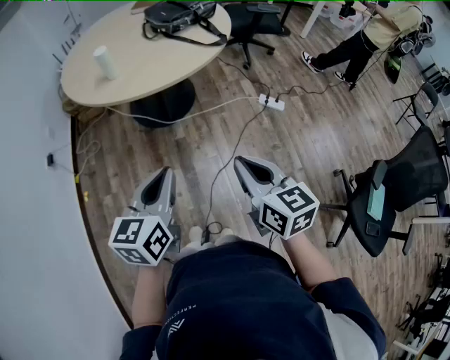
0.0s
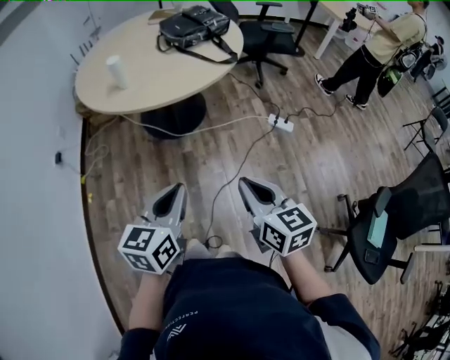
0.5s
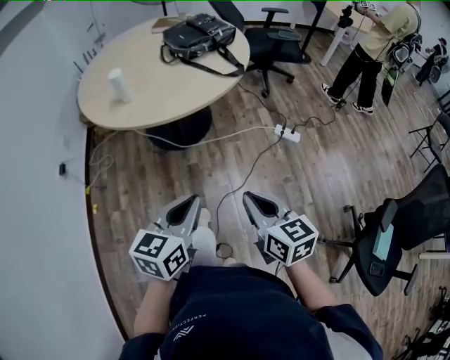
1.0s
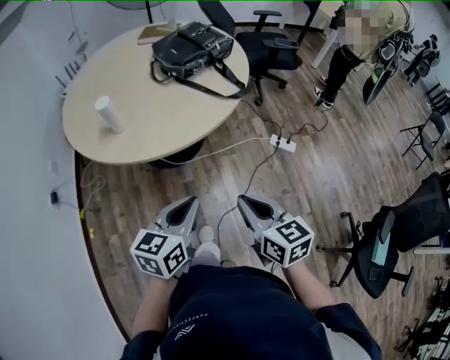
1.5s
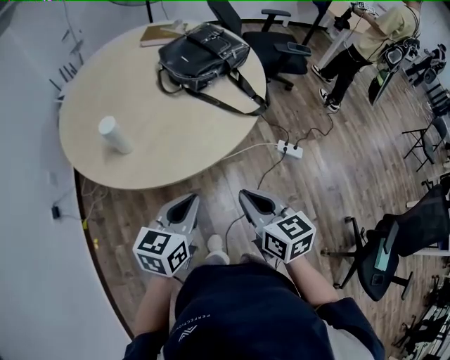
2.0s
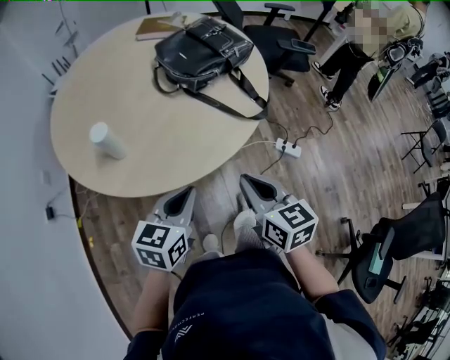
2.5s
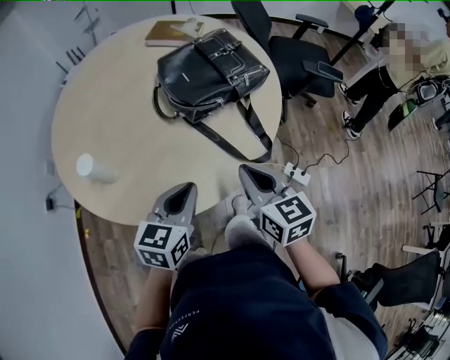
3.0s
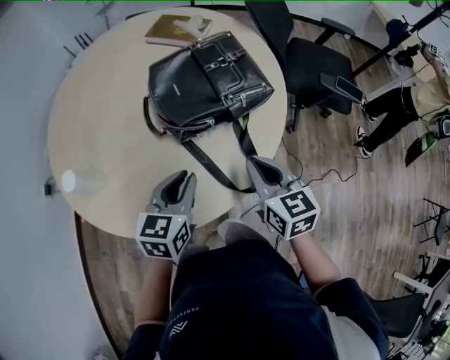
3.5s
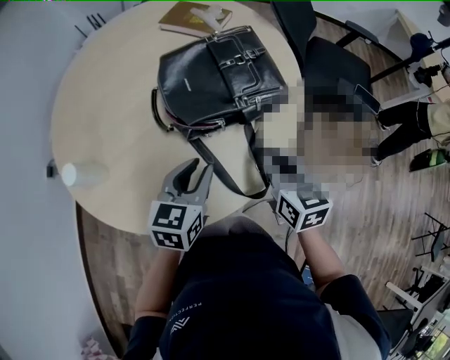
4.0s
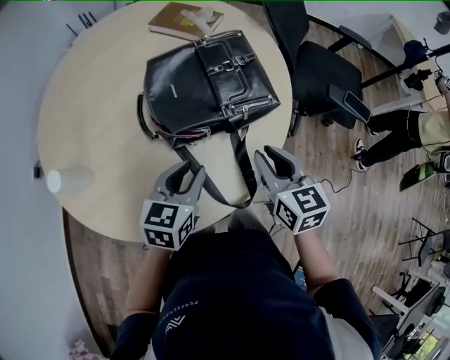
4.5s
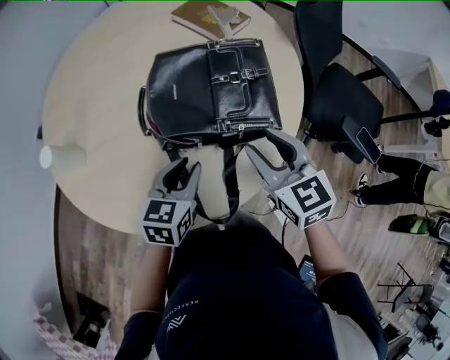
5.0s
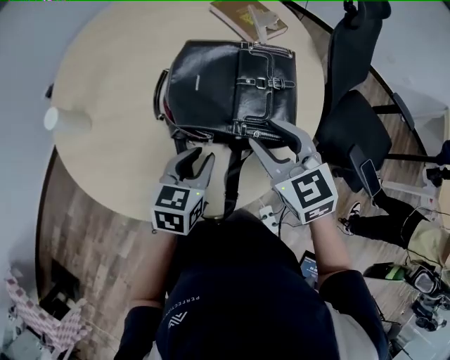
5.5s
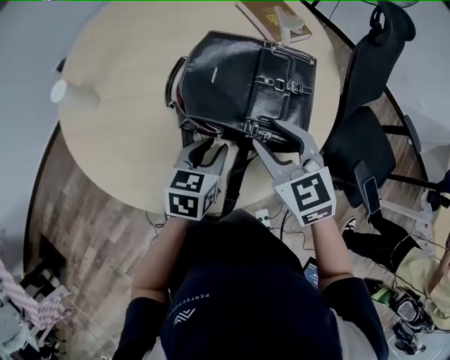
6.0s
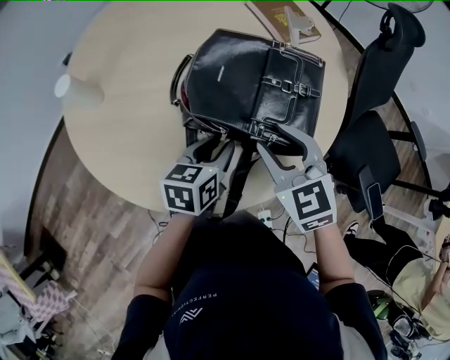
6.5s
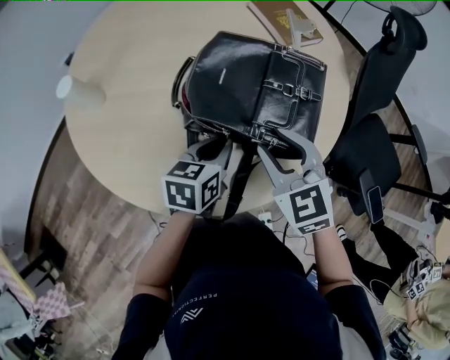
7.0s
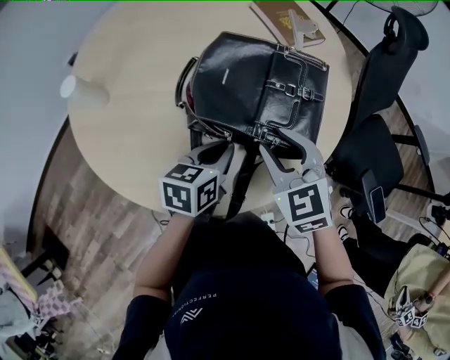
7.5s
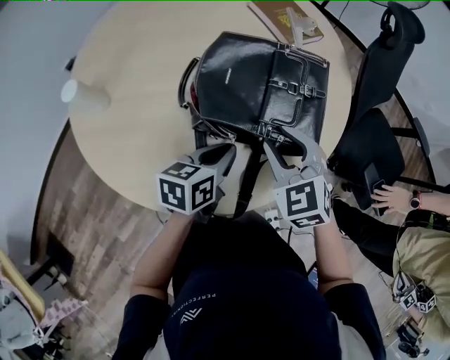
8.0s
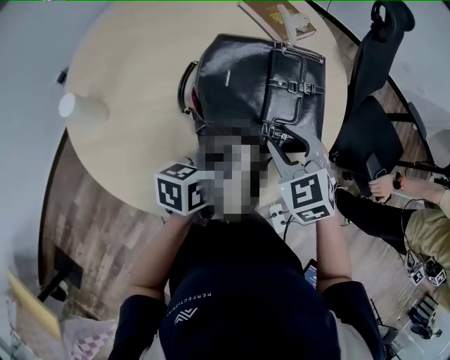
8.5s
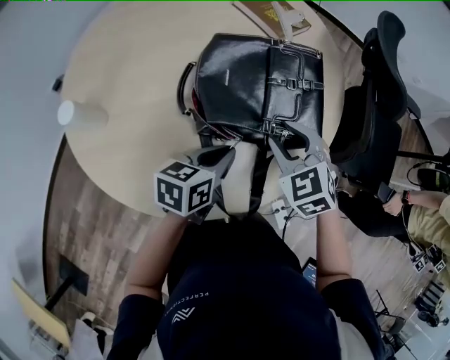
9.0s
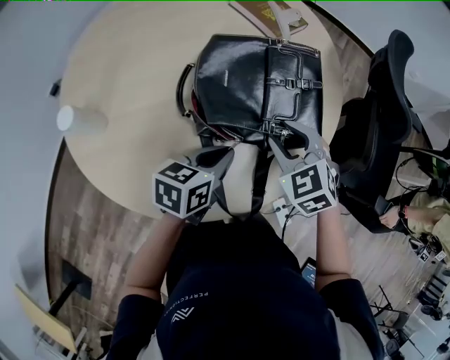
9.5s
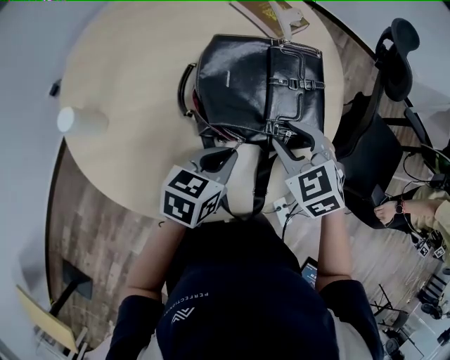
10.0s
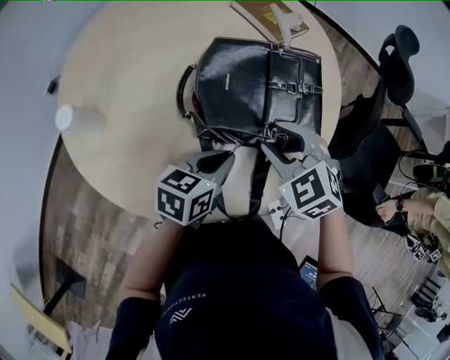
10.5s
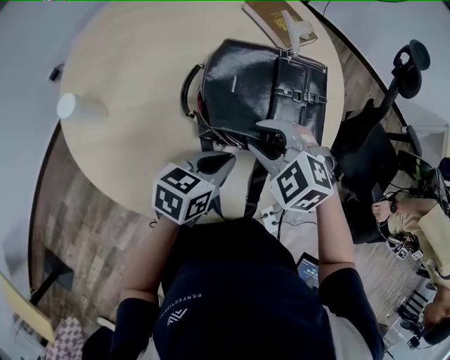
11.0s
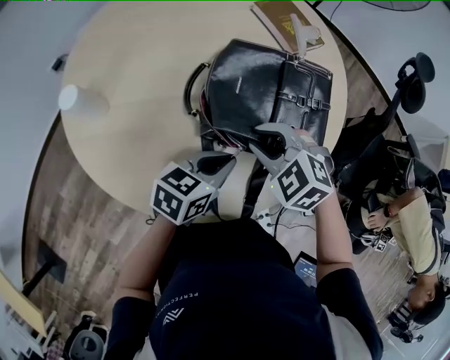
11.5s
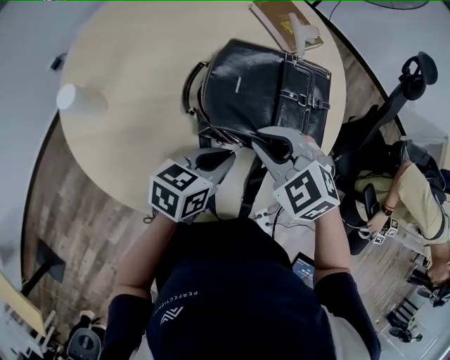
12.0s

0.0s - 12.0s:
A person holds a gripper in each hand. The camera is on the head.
0.0s - 2.0s: Both grippers move forward, roughly 30 cm.
2.0s - 4.0s: The two grippers go roughly 40 cm forward and to the right. The left gripper rotates roughly 30 degrees, and opens.
4.0s - 6.0s: The left gripper moves approximately 10 cm, and turns by roughly 30 degrees, while the right gripper changes place by roughly 10 cm, rotates some 60 degrees, and opens.
6.0s - 8.0s: The left gripper closes.
8.0s - 10.0s: The left gripper rotates approximately 20 degrees.
10.0s - 12.0s: The right gripper heads to the left, covering some 5 cm, turns by roughly 30 degrees, and closes up.

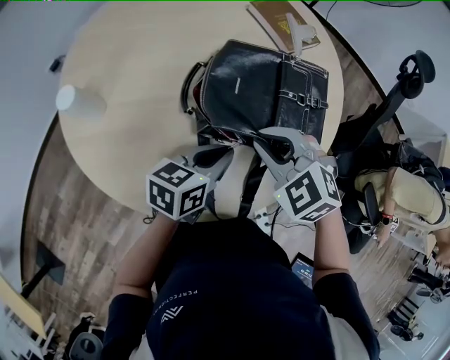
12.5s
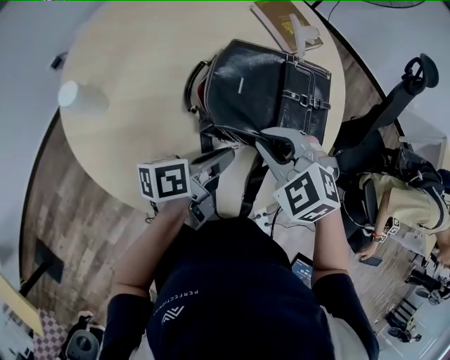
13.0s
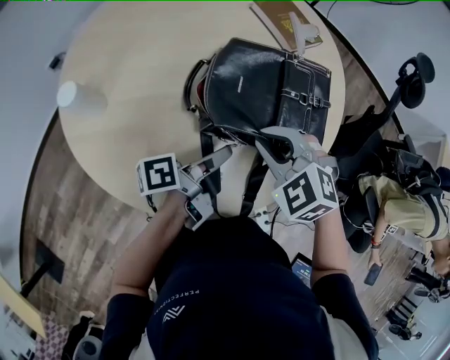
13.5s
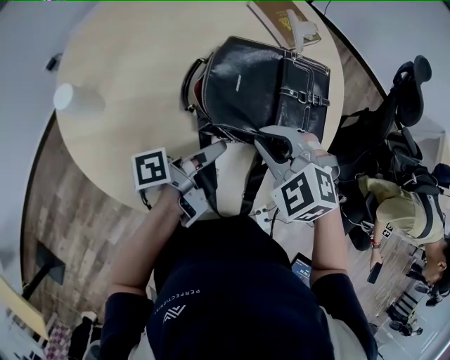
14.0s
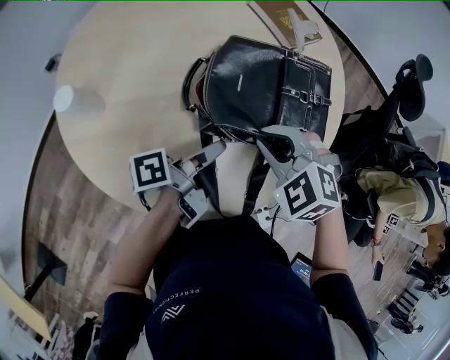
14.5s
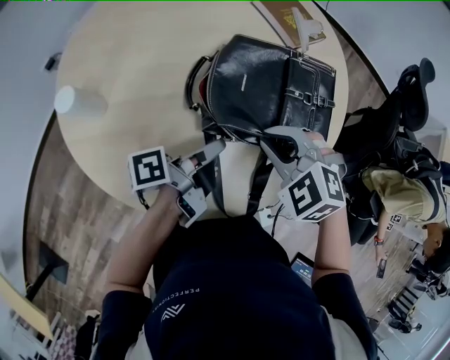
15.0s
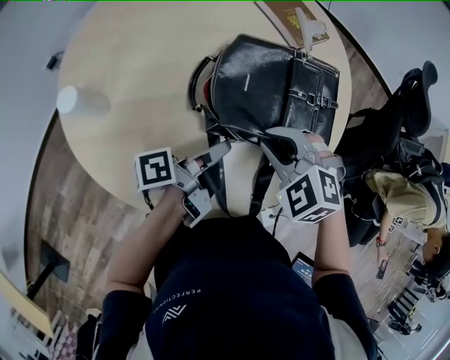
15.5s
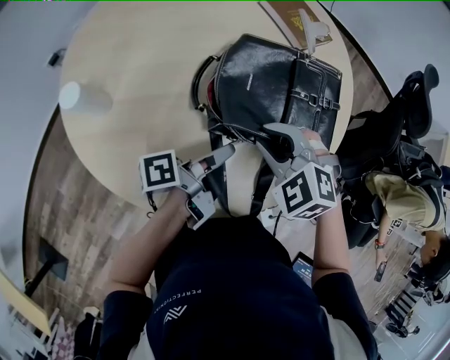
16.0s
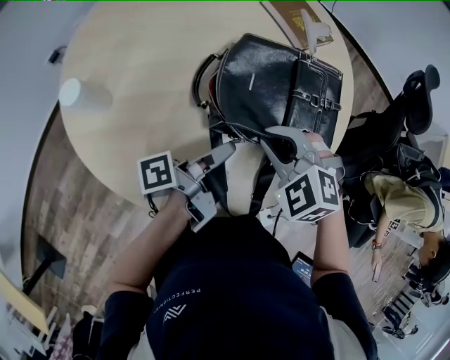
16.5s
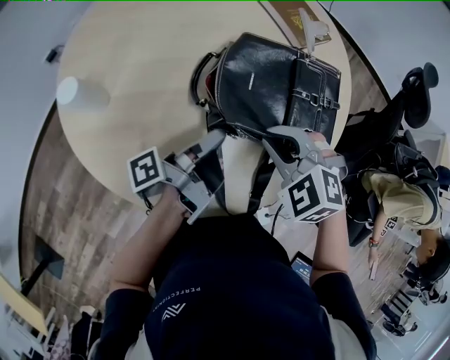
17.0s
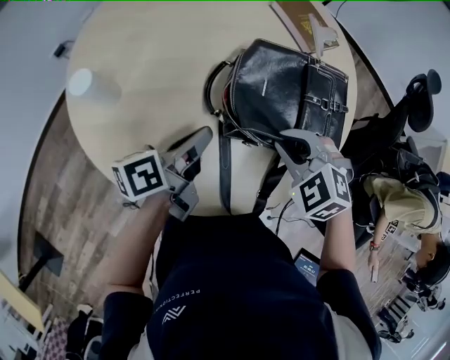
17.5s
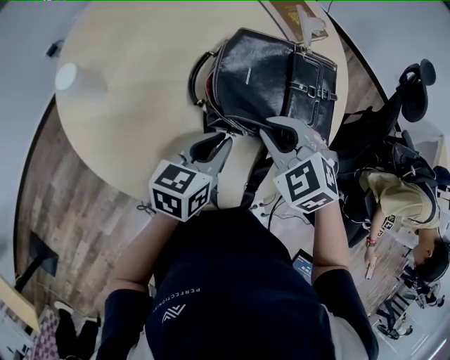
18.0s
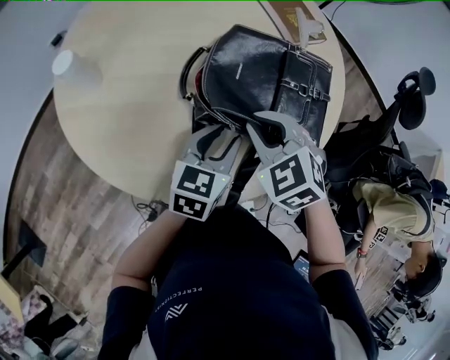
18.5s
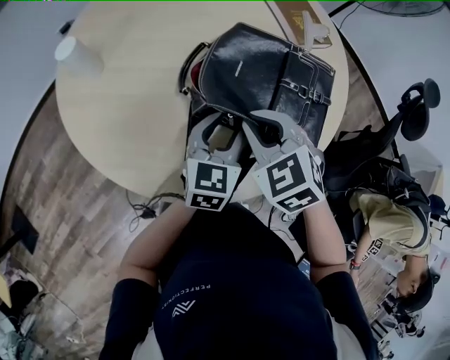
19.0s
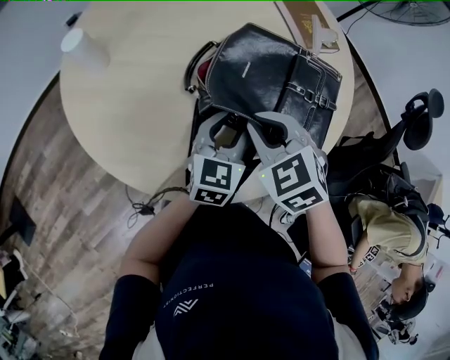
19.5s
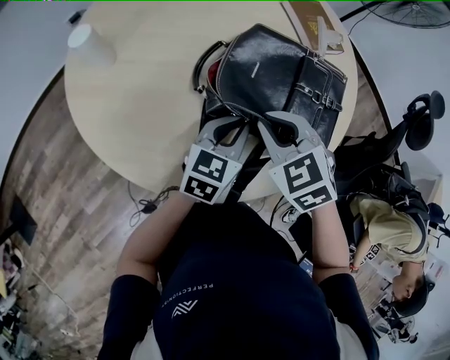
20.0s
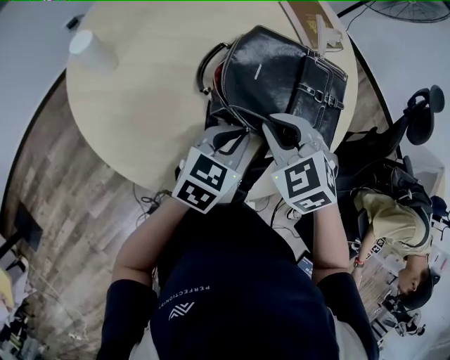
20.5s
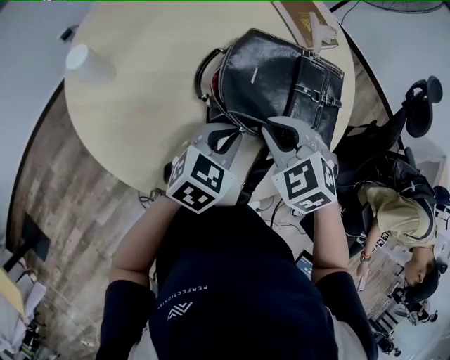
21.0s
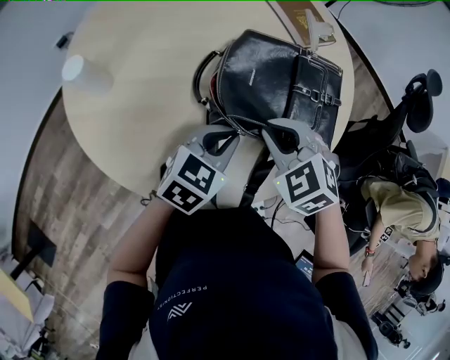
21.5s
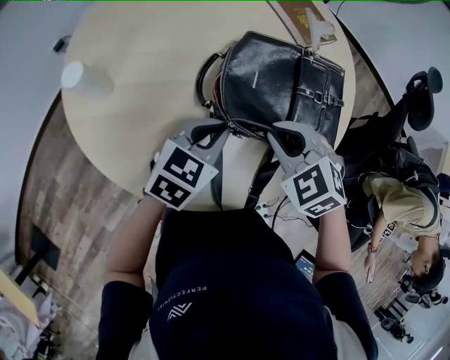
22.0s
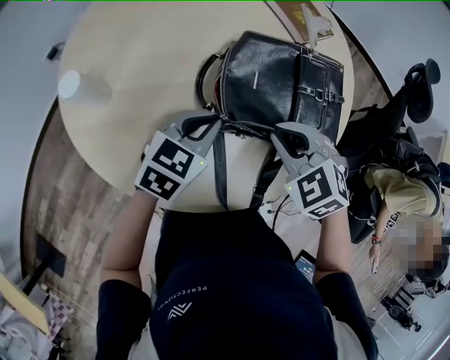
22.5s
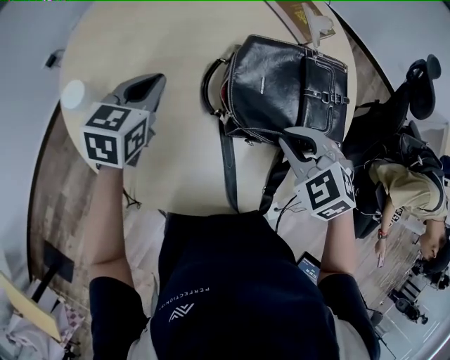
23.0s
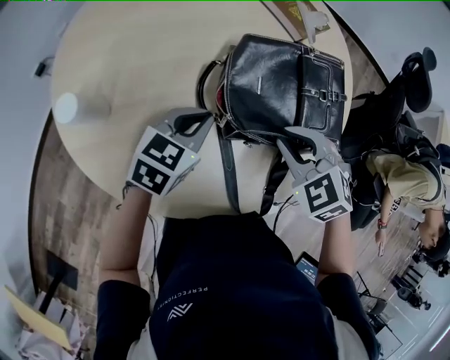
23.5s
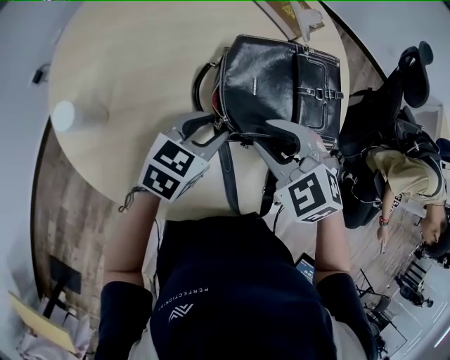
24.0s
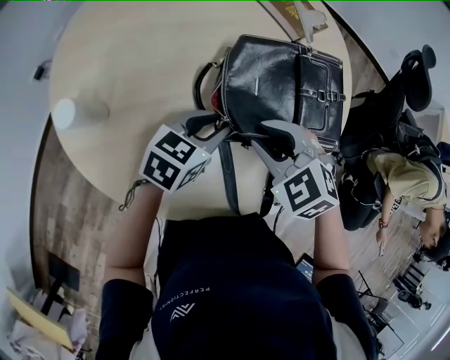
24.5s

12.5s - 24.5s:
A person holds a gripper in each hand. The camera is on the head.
12.5s - 14.5s: The left gripper twists some 60 degrees counterclockwise, seen from behind.
14.5s - 16.5s: The grippers make only small movements.
16.5s - 18.5s: The left gripper moves to the right, roughly 5 cm, twists approximately 80 degrees clockwise, seen from behind, and opens its fingers.
18.5s - 20.5s: The left gripper closes up.
20.5s - 22.5s: The left gripper goes approximately 10 cm to the left.
22.5s - 24.5s: The left gripper goes to the left and returns, roughly 15 cm each way, and opens up. Meanwhile the right gripper opens.

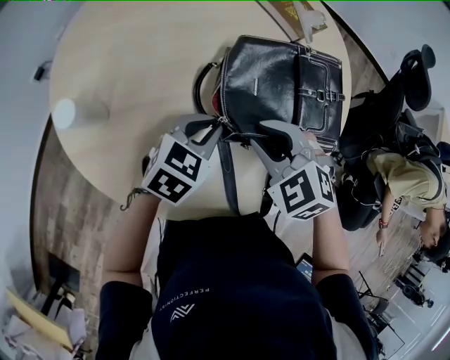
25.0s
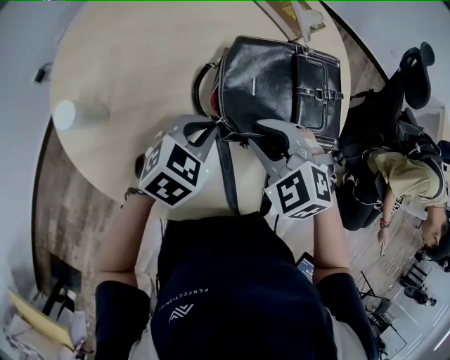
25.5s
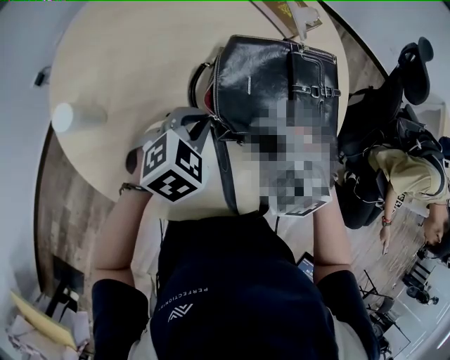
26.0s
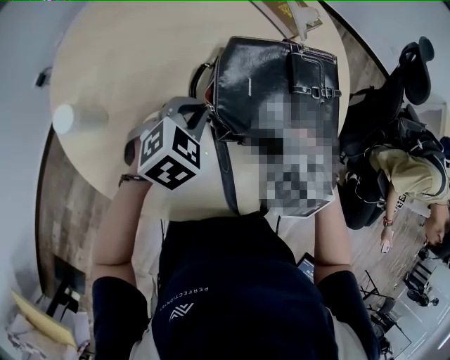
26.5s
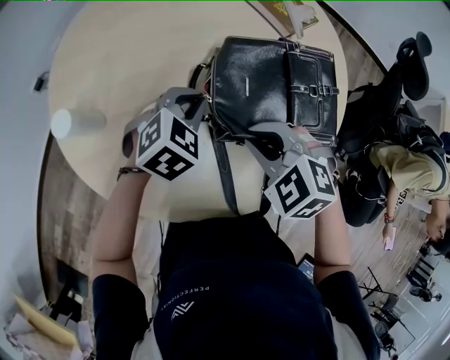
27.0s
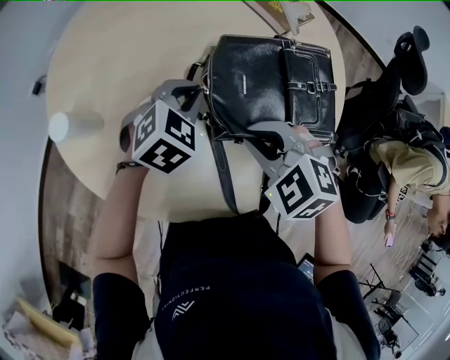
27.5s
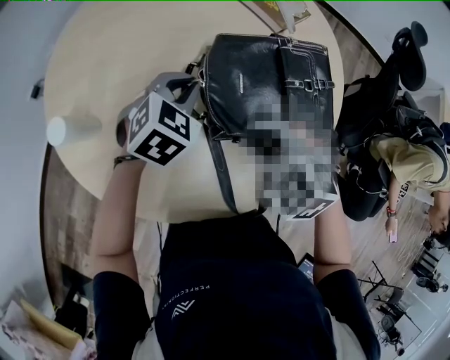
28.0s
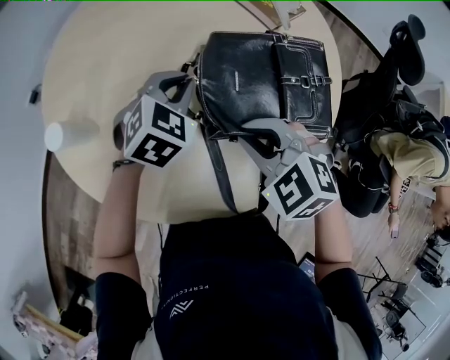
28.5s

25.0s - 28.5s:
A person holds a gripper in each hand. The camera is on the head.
25.0s - 27.0s: The left gripper travels forward by some 5 cm, and turns by roughly 20 degrees.
27.0s - 28.5s: The grippers make only small movements.
